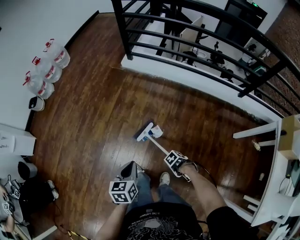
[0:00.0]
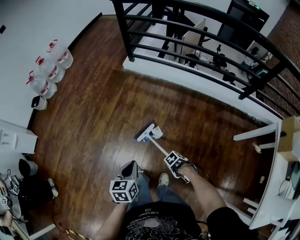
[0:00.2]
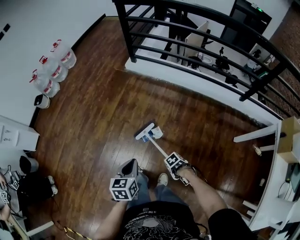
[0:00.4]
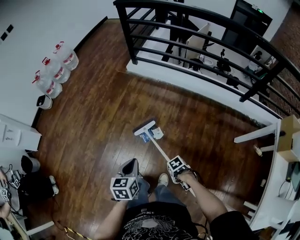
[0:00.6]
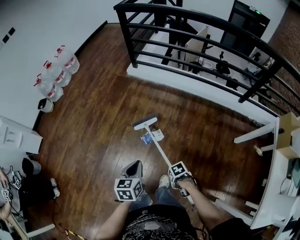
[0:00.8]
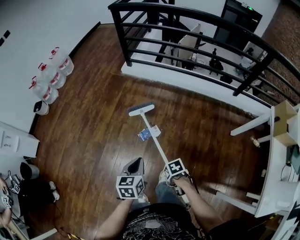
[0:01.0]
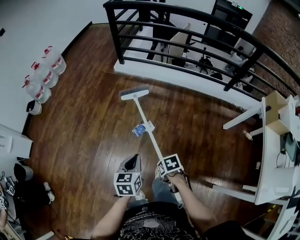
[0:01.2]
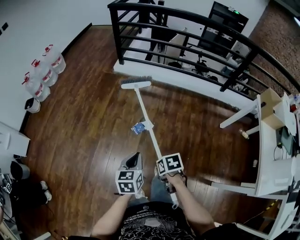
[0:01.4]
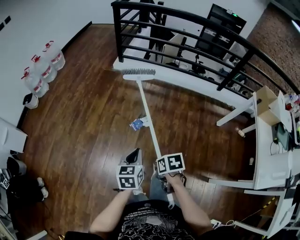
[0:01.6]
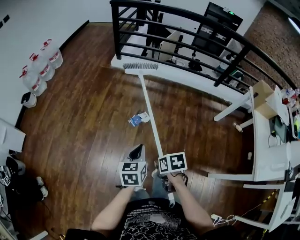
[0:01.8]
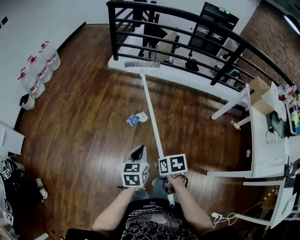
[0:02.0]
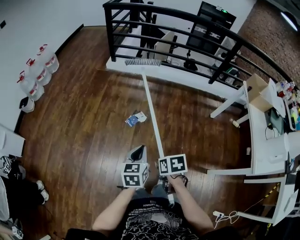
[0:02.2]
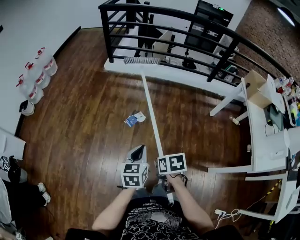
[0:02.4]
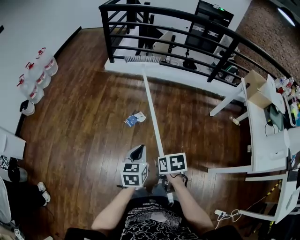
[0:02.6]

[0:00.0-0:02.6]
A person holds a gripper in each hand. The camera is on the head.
0:00.0 to 0:01.2: The left gripper moves about 10 cm.
0:01.2 to 0:02.6: The left gripper changes place by about 15 cm.

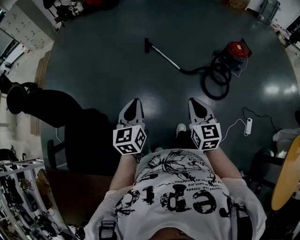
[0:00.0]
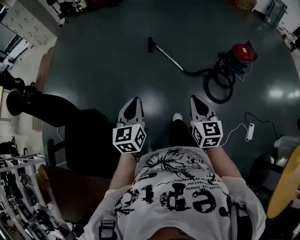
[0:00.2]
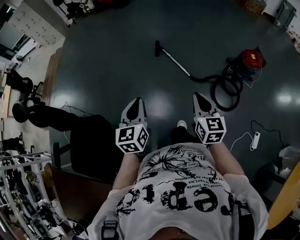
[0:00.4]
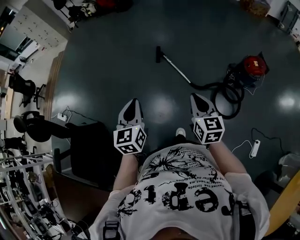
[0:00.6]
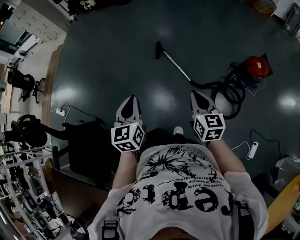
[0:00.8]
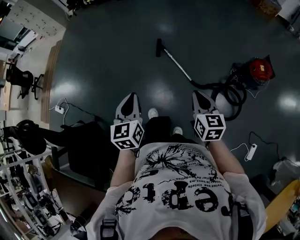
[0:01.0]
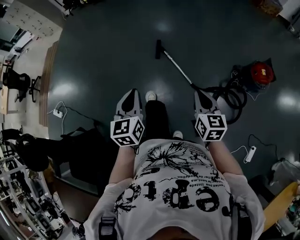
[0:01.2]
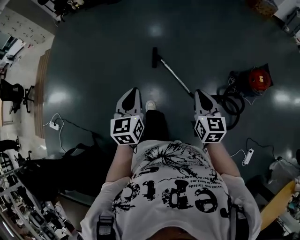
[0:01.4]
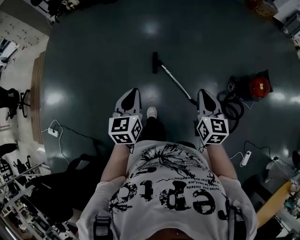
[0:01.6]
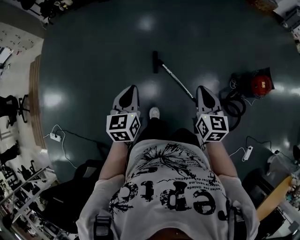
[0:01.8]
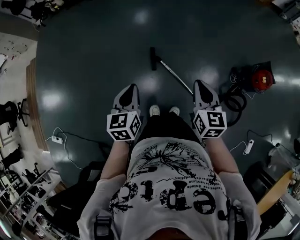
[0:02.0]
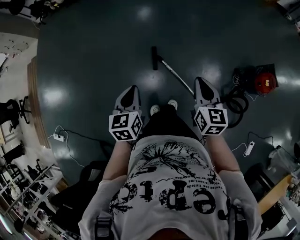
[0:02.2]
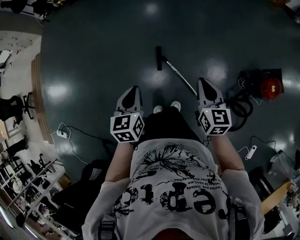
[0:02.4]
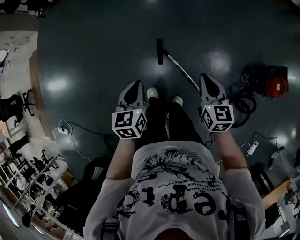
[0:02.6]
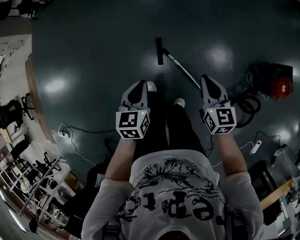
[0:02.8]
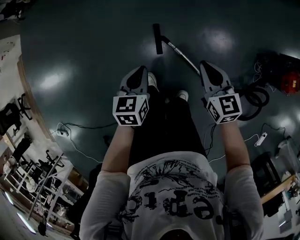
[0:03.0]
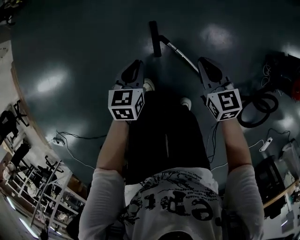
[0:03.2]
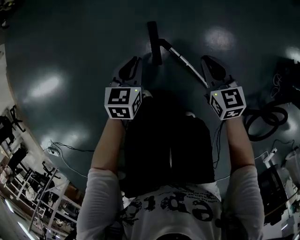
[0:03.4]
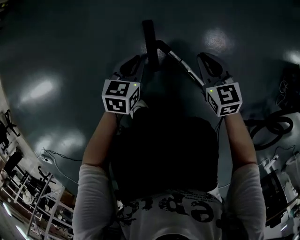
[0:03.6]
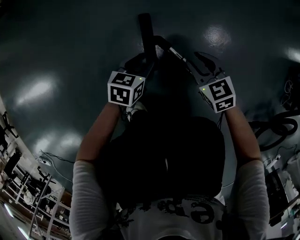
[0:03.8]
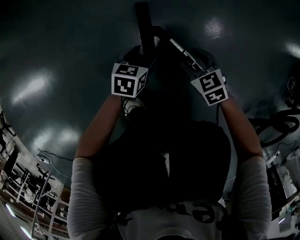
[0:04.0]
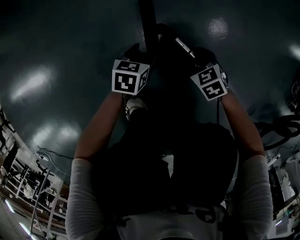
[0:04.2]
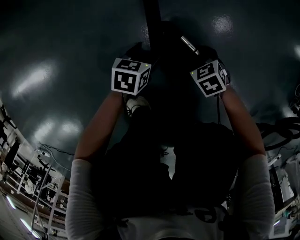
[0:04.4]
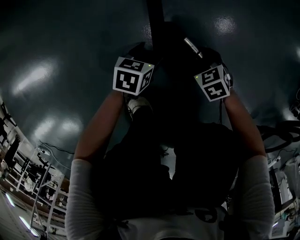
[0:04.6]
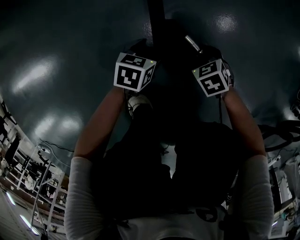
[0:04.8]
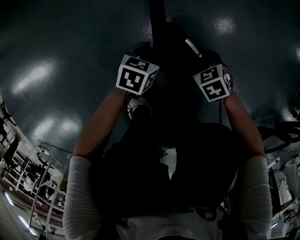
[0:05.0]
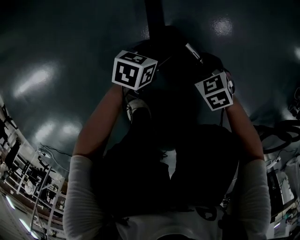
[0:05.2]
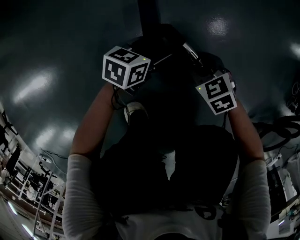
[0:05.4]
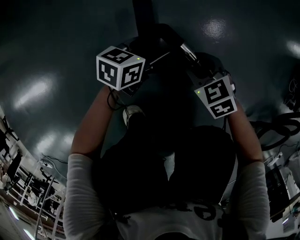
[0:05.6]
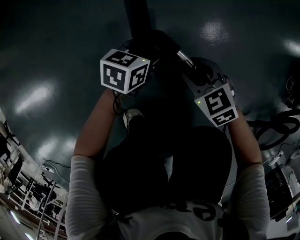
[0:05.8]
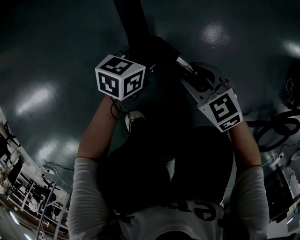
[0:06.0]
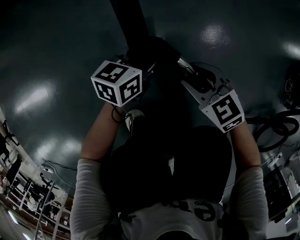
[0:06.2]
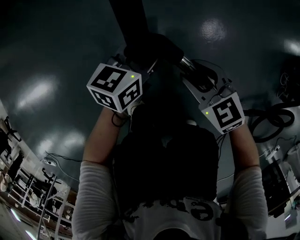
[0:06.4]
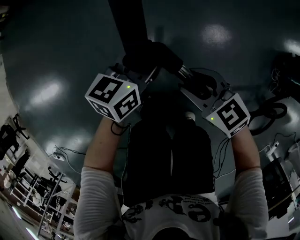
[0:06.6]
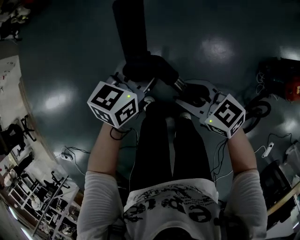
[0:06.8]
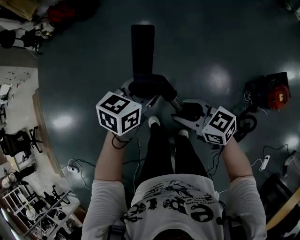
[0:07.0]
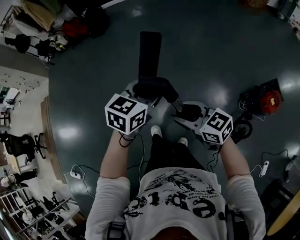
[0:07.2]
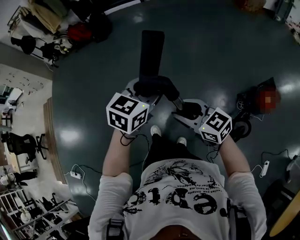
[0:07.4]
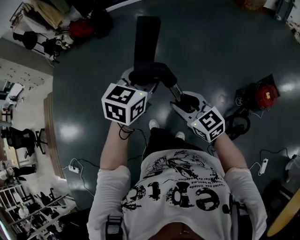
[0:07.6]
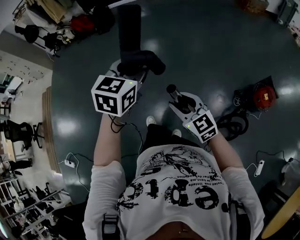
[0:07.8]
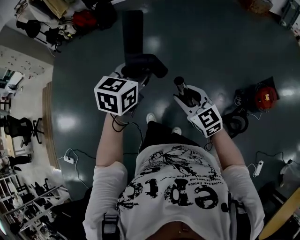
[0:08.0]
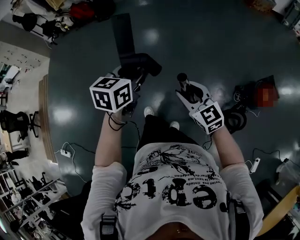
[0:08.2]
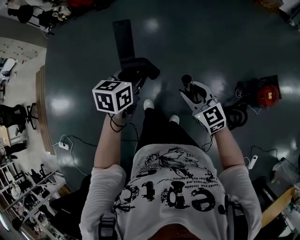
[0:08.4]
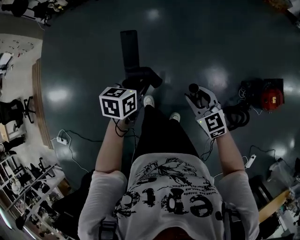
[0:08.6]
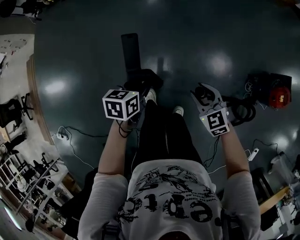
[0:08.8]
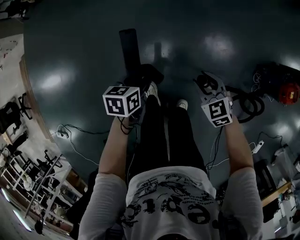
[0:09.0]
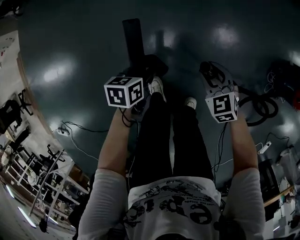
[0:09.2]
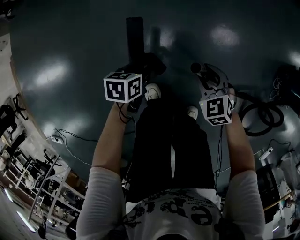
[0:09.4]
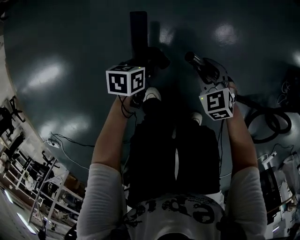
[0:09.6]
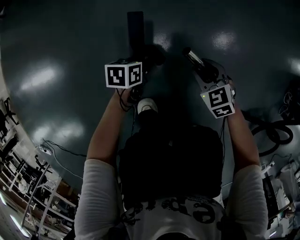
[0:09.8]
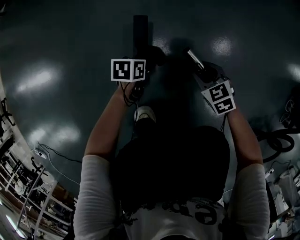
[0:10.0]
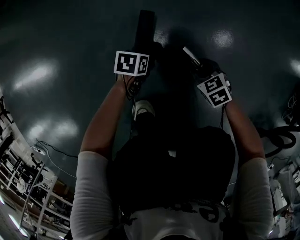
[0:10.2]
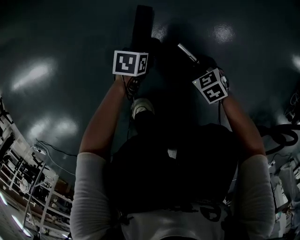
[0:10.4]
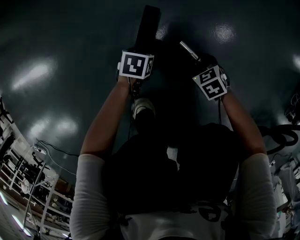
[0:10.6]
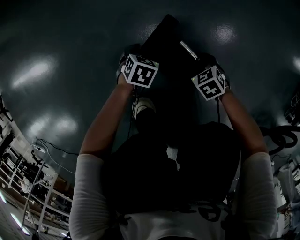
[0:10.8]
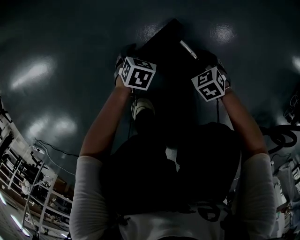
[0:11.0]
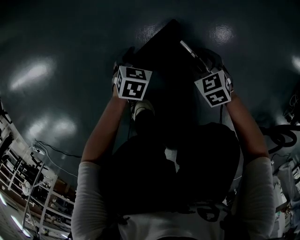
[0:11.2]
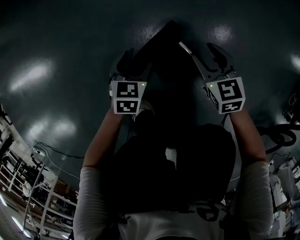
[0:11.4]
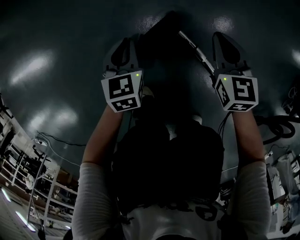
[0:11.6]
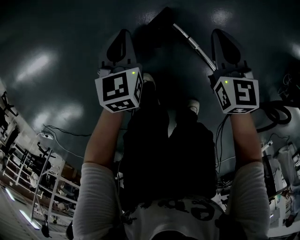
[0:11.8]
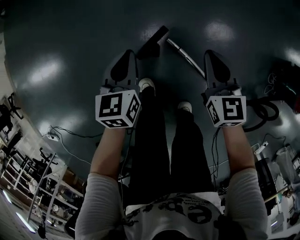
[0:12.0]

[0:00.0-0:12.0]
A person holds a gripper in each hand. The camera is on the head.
0:00.0 to 0:01.6: The pair of grippers is taken forward, some 60 cm.
0:01.6 to 0:03.0: The right gripper goes about 40 cm forward and downward; the left gripper is displaced downward and forward by about 40 cm, and rotates about 20 degrees.
0:03.0 to 0:04.4: Both grippers move downward, approximately 70 cm. The left gripper swivels approximately 20 degrees, and opens its fingers. The right gripper points its fingers about 40 degrees further downward, and opens its fingers.
0:04.4 to 0:06.0: The right gripper moves upward, about 20 cm, and rotates roughly 20 degrees, while the left gripper goes some 20 cm upward, forward and to the right, and swivels roughly 20 degrees.
0:06.0 to 0:07.6: Both grippers move upward, about 90 cm. The right gripper changes its angle by some 30 degrees. The left gripper turns by about 30 degrees.
0:07.6 to 0:09.0: Both grippers move downward, some 50 cm. The right gripper rotates some 30 degrees. Meanwhile the left gripper changes its angle by approximately 50 degrees.
0:09.0 to 0:10.4: The two grippers go some 60 cm downward. The right gripper rotates about 20 degrees.
0:10.4 to 0:12.0: Both grippers travel together upward, roughly 50 cm. The left gripper rotates roughly 40 degrees, and closes its fingers. Meanwhile the right gripper tilts its fingers about 30 degrees upward, and closes its fingers.

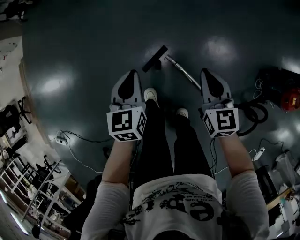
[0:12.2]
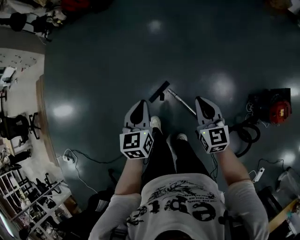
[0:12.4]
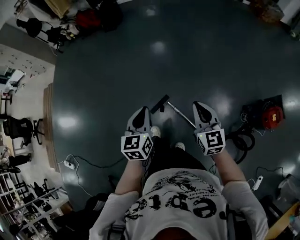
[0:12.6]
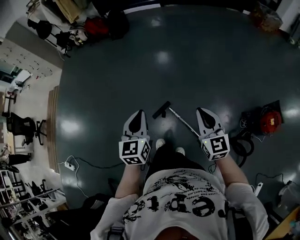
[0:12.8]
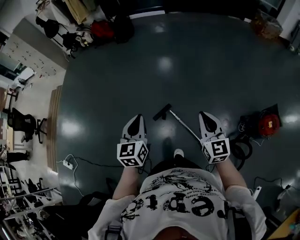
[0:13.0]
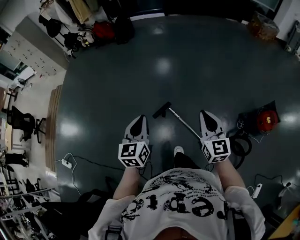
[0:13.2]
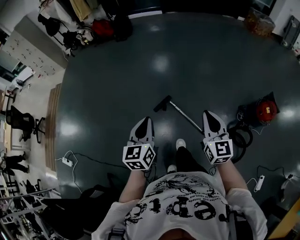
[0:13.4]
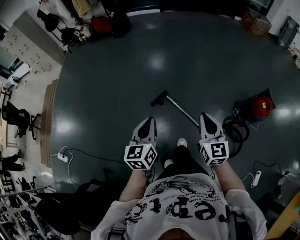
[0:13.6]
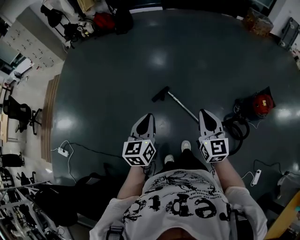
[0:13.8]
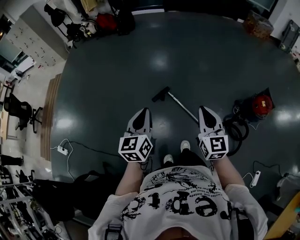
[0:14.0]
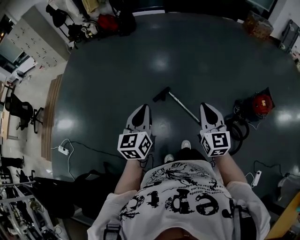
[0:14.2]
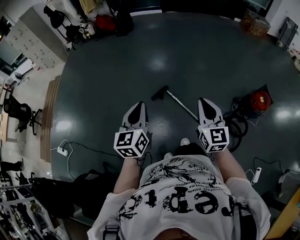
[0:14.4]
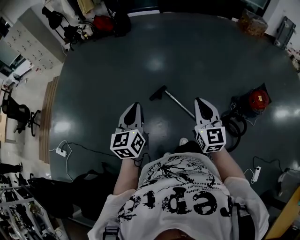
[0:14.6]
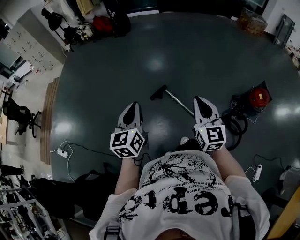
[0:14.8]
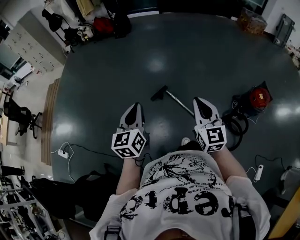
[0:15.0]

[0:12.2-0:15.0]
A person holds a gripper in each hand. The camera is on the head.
0:12.2 to 0:13.6: The right gripper goes some 50 cm upward and backward. Meanwhile the left gripper heads backward and upward, covering approximately 50 cm, and swivels some 20 degrees.
0:13.6 to 0:15.0: The left gripper moves backward, to the left and upward, approximately 10 cm, while the right gripper shifts roughly 5 cm backward.

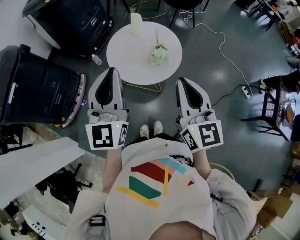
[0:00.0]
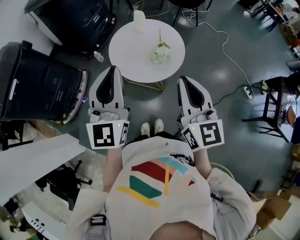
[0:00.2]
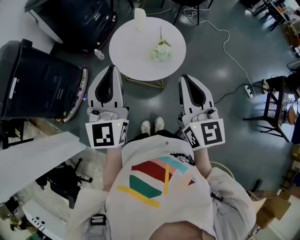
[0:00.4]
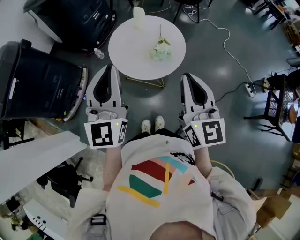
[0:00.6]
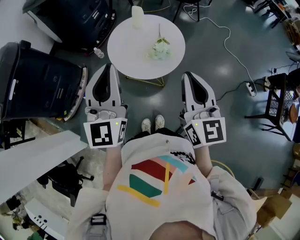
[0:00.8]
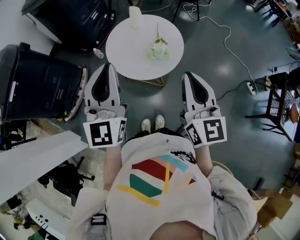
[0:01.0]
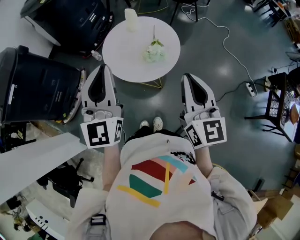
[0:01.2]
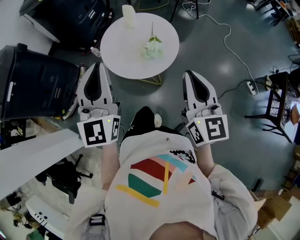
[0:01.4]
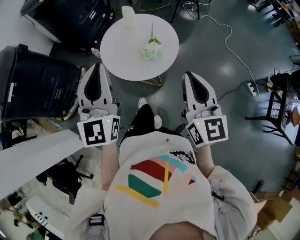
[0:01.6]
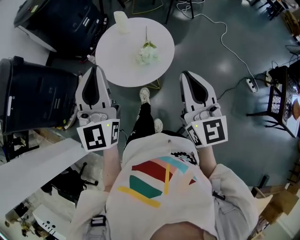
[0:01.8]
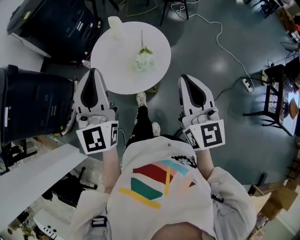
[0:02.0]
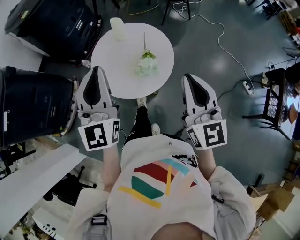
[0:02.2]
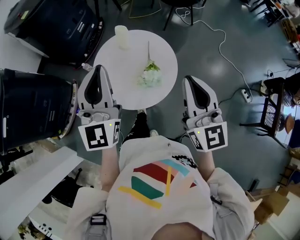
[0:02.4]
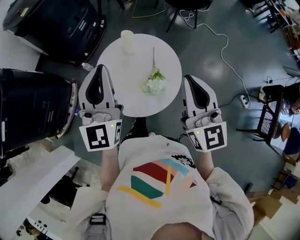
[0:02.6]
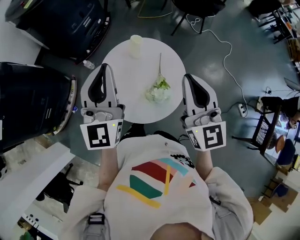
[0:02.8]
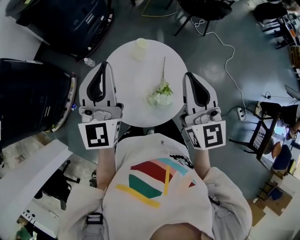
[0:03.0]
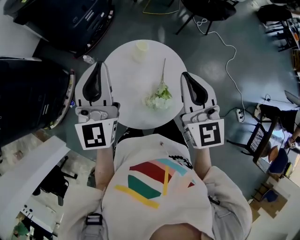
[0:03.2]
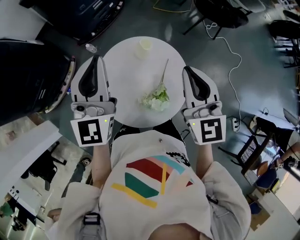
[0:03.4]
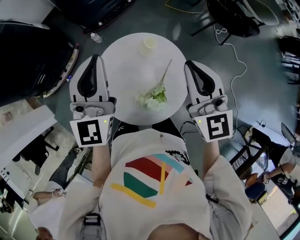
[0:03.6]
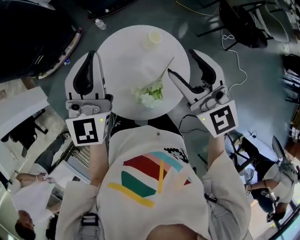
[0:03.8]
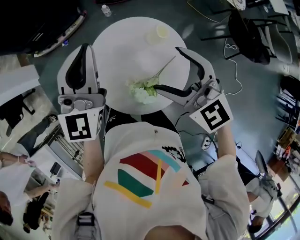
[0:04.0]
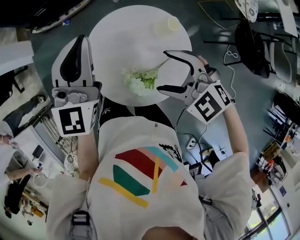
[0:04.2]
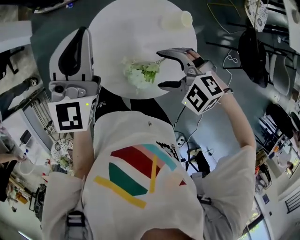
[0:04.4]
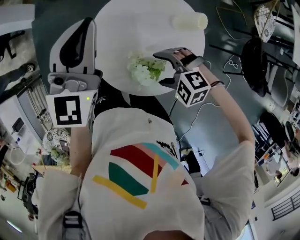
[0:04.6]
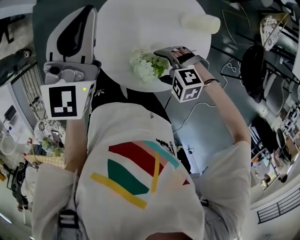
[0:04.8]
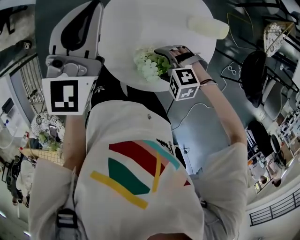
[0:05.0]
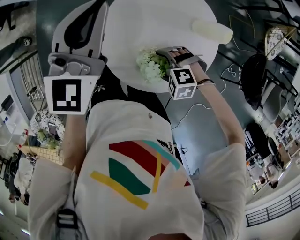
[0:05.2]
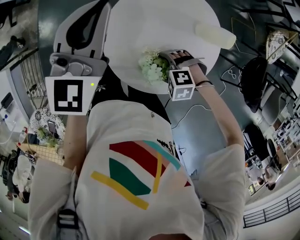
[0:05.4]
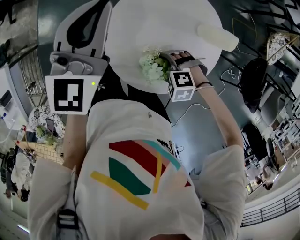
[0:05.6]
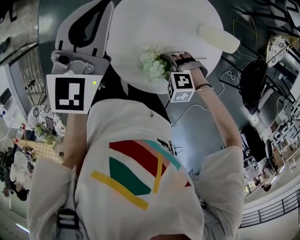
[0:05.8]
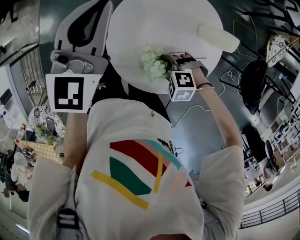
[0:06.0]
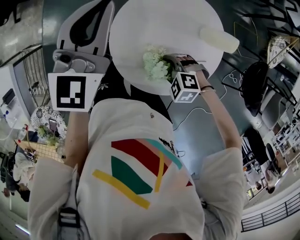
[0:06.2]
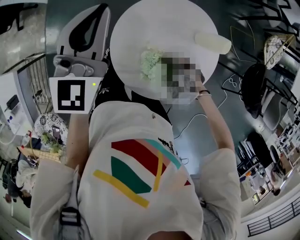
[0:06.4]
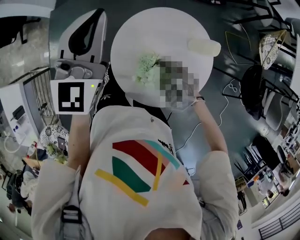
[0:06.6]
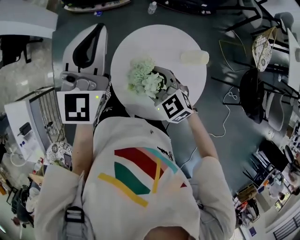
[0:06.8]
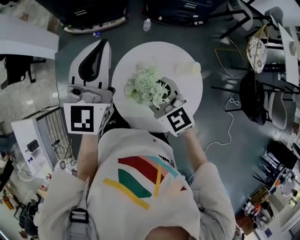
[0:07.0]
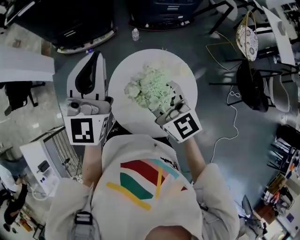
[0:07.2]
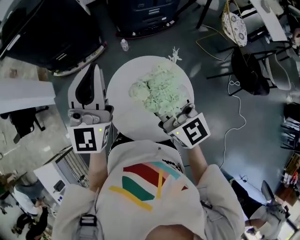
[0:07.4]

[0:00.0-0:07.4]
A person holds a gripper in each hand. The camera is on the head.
0:00.0 to 0:01.4: The right gripper heads to the right, covering roughly 10 cm.
0:01.4 to 0:03.0: Both grippers travel together forward, about 30 cm.
0:03.0 to 0:04.4: The right gripper shifts approximately 20 cm downward, angles its fingers downward, by some 50 degrees, and opens up. Meanwhile the left gripper shifts some 10 cm downward, and changes its angle by some 50 degrees.
0:04.4 to 0:06.0: The right gripper is displaced downward by roughly 15 cm, changes its angle by approximately 30 degrees, and closes its fingers; the left gripper moves approximately 10 cm.
0:06.0 to 0:07.4: The right gripper moves upward, some 35 cm, and tilts its fingers about 70 degrees upward, while the left gripper is displaced upward by some 15 cm, and rotates some 20 degrees.
